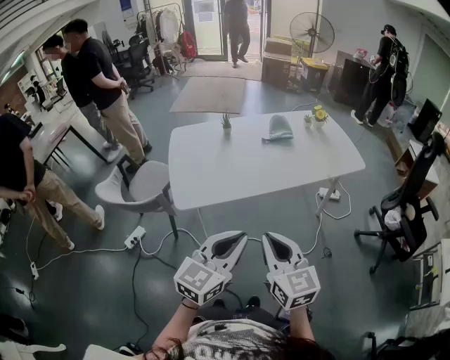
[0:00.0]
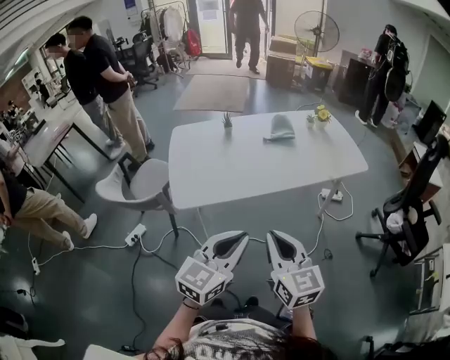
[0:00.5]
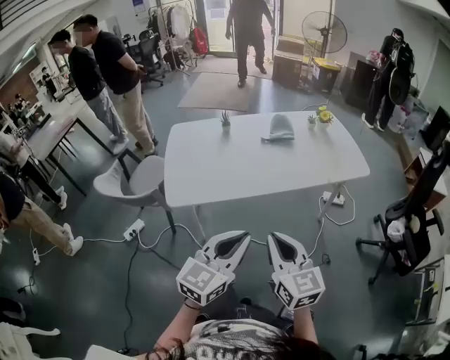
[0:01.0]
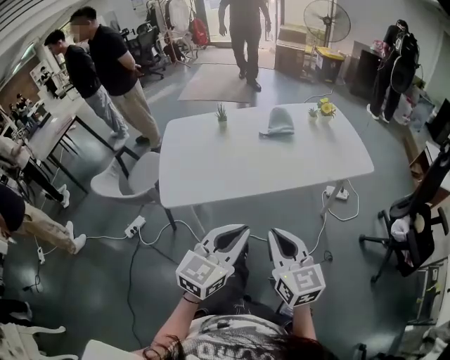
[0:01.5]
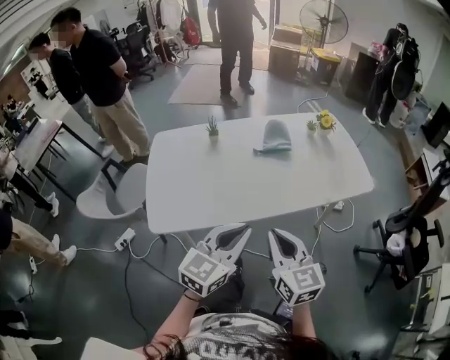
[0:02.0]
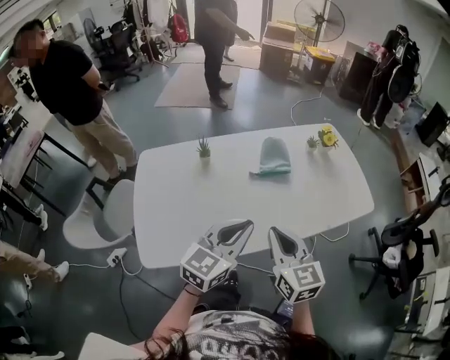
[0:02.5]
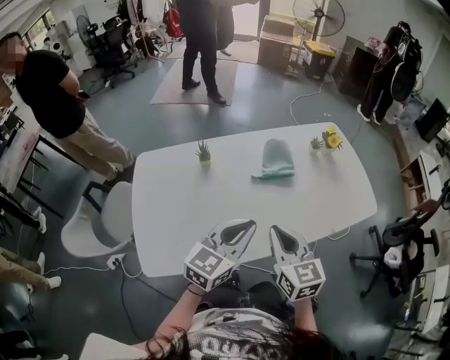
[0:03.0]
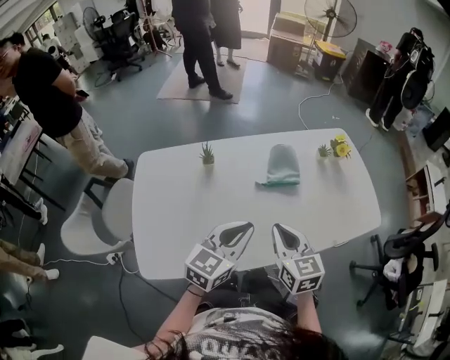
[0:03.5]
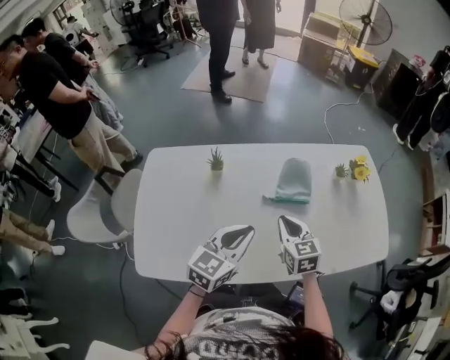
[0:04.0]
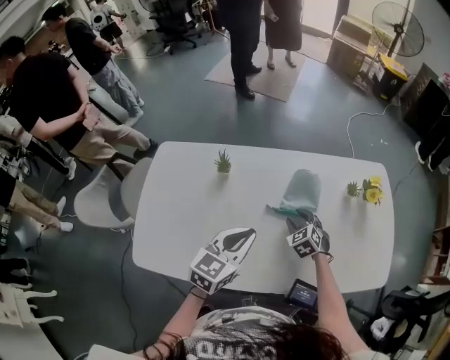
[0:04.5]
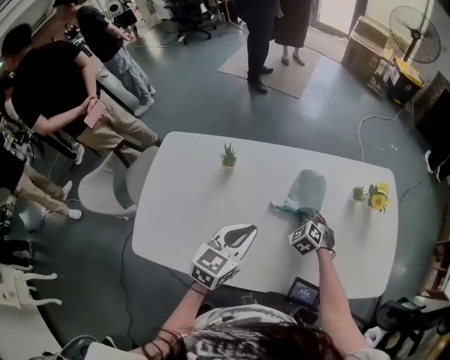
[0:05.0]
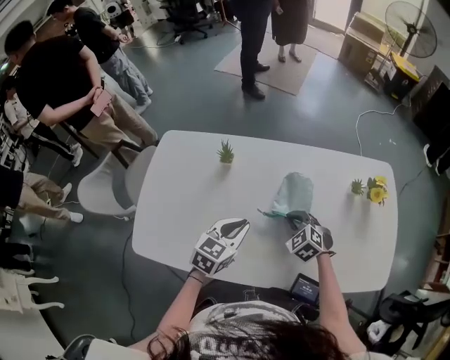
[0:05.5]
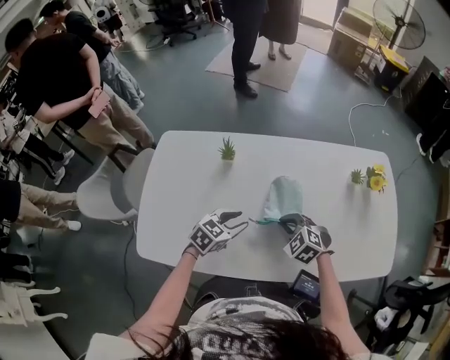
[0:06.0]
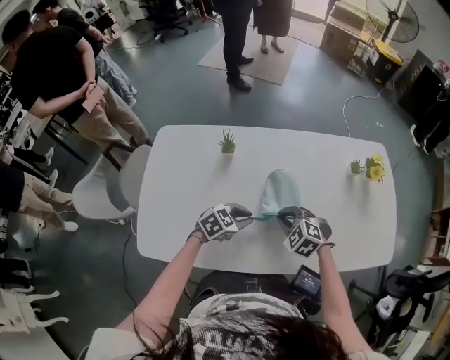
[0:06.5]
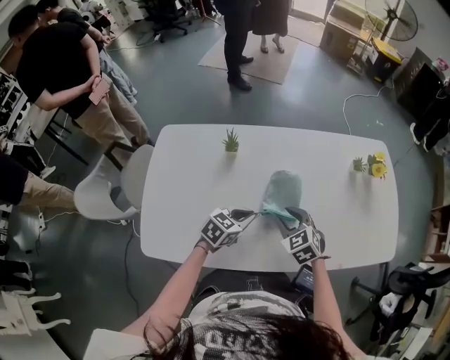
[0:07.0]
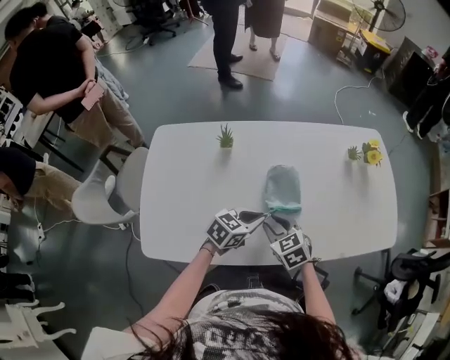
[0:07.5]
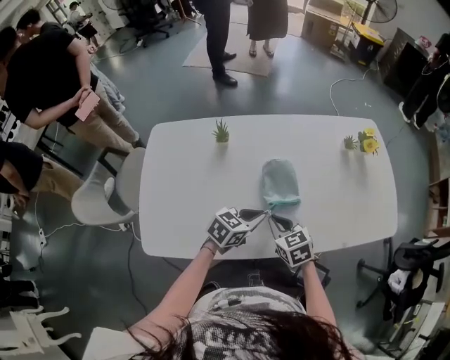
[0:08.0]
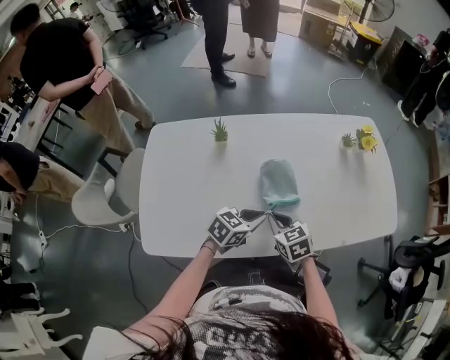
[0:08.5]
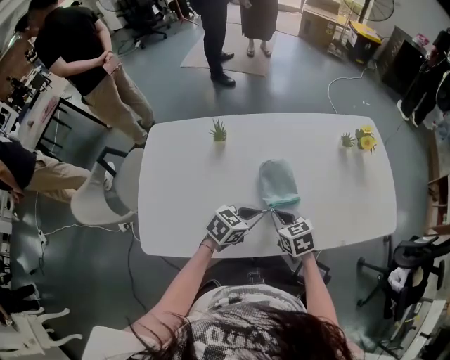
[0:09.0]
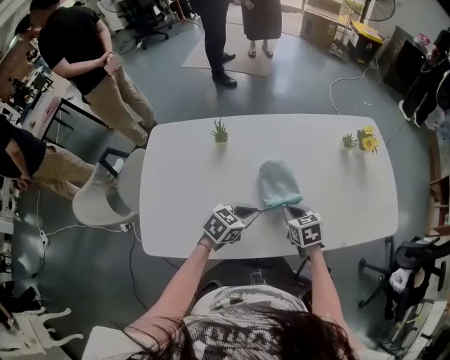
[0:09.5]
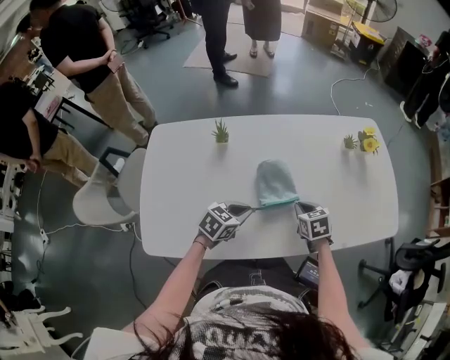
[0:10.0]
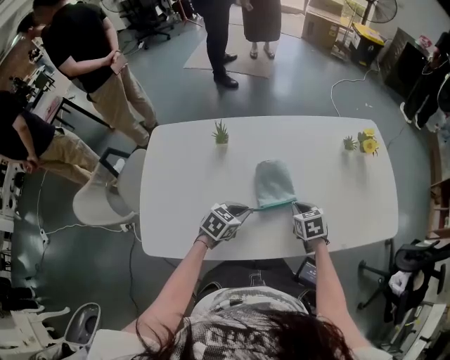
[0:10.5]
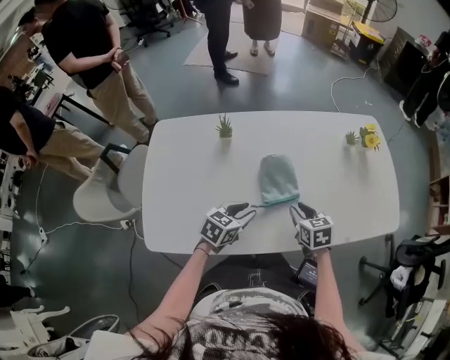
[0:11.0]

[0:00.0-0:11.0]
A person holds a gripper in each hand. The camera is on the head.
0.0 to 2.0 s: Both grippers move forward and to the right, approximately 20 cm.
2.0 to 3.5 s: The two grippers go some 25 cm forward.
3.5 to 5.5 s: The left gripper shifts about 15 cm downward and forward, and turns by about 30 degrees, while the right gripper shifts some 25 cm downward and forward, turns by approximately 60 degrees, and opens and closes again.
5.5 to 7.5 s: The right gripper shifts about 15 cm backward and to the left, turns by about 30 degrees, and opens its fingers, while the left gripper travels downward by about 5 cm, swivels some 30 degrees, and opens and closes again.
7.5 to 9.0 s: The right gripper closes up.
9.0 to 11.0 s: The right gripper is displaced to the right by some 5 cm, and opens, while the left gripper is displaced to the left by about 5 cm, and opens.

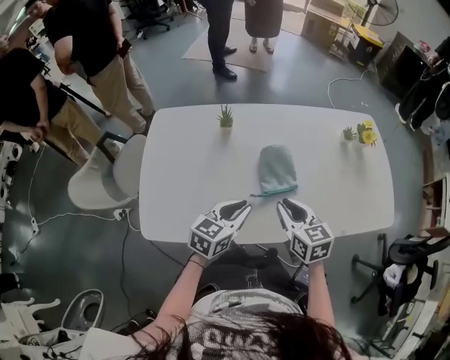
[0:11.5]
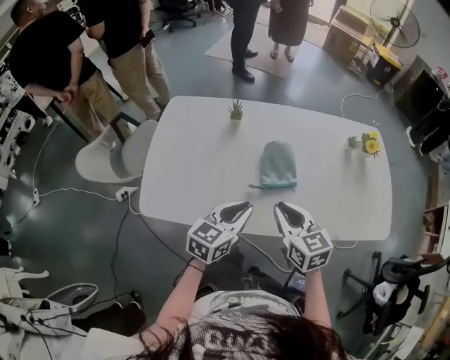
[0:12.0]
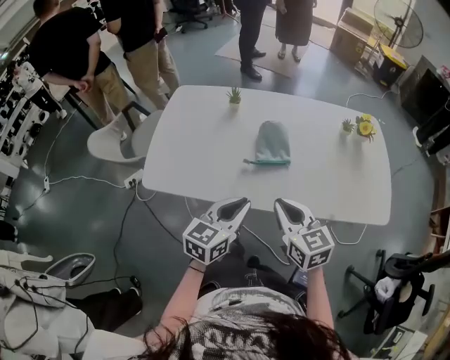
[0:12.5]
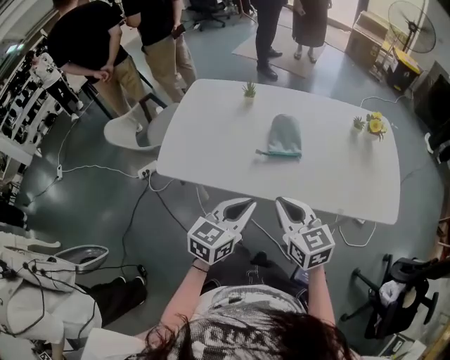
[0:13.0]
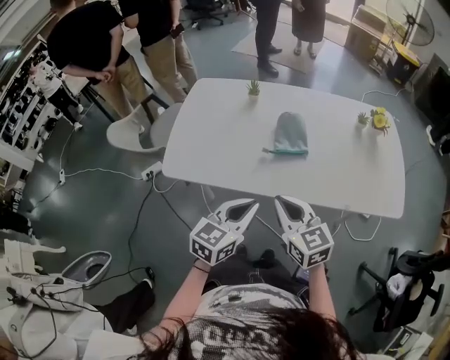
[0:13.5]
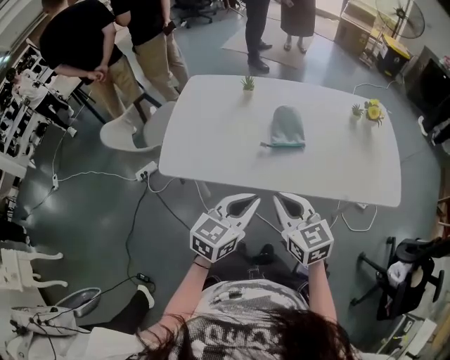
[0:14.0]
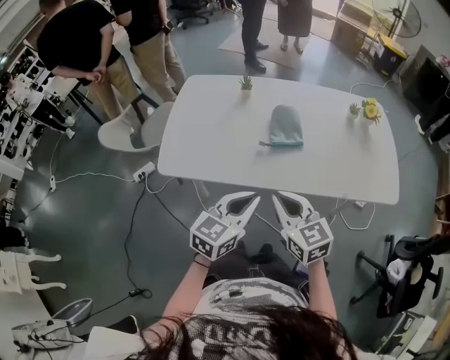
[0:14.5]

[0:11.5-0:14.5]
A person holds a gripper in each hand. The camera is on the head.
11.5 to 13.0 s: The right gripper goes approximately 15 cm backward, and turns by some 20 degrees. Meanwhile the left gripper goes roughly 20 cm backward and upward.
13.0 to 14.5 s: The right gripper shifts by some 5 cm.

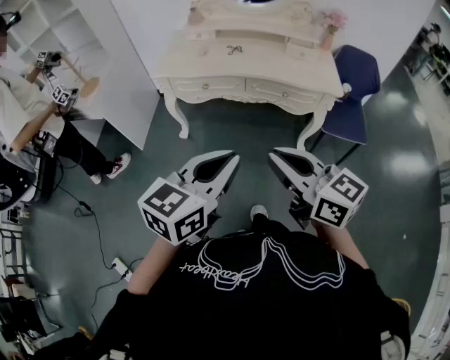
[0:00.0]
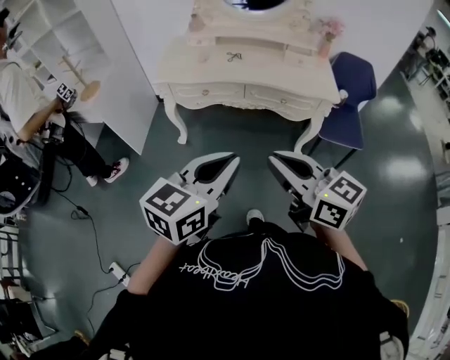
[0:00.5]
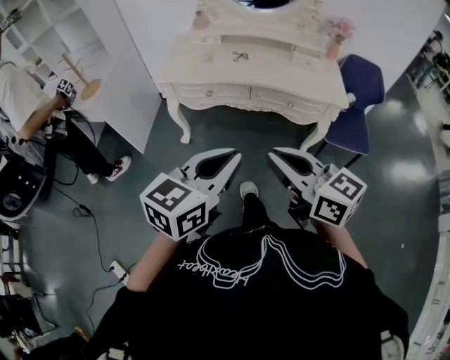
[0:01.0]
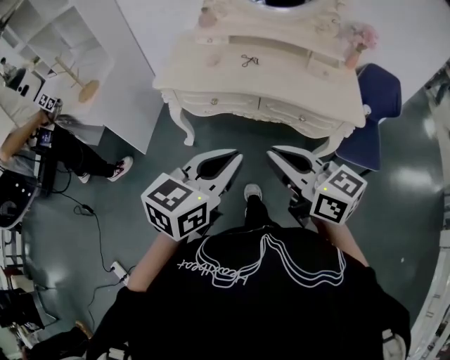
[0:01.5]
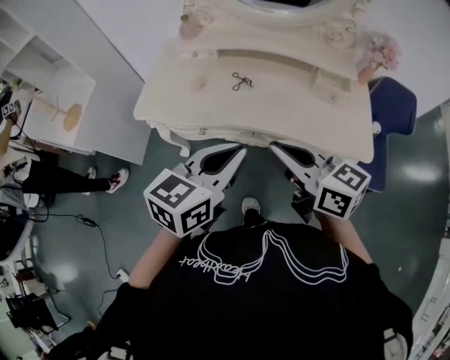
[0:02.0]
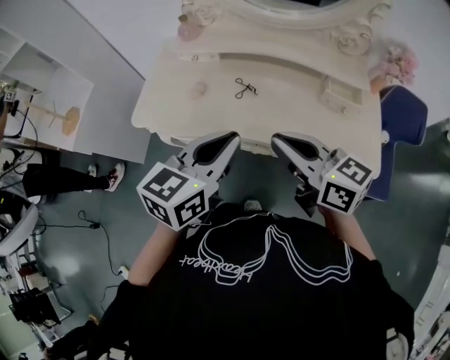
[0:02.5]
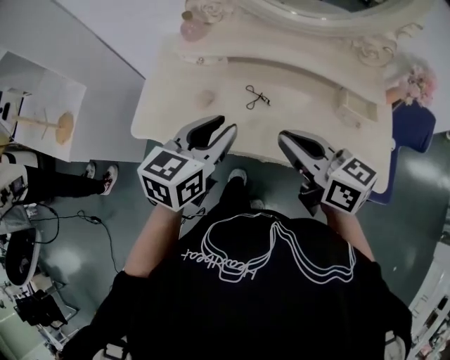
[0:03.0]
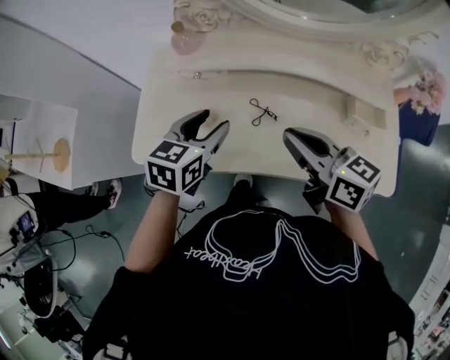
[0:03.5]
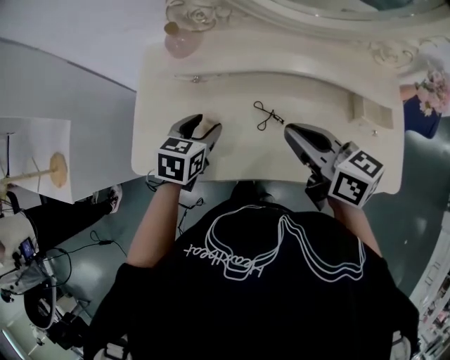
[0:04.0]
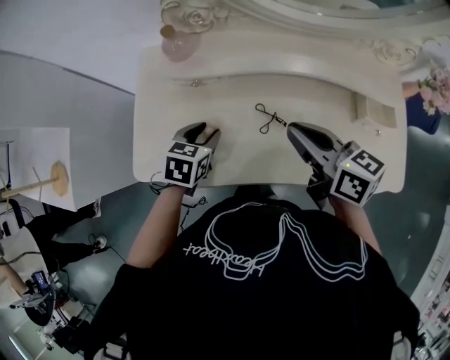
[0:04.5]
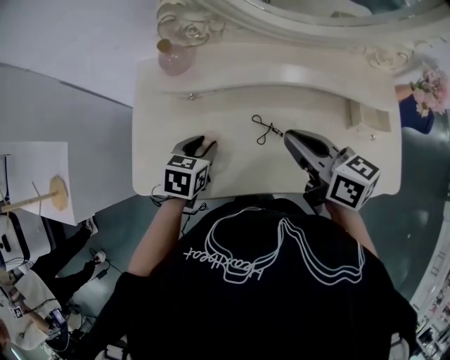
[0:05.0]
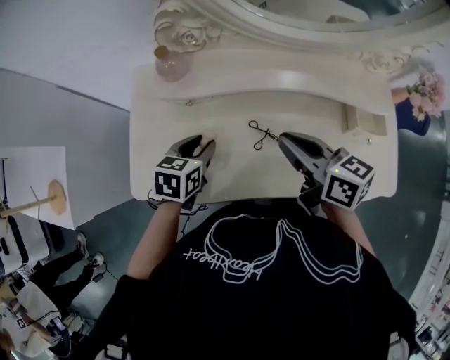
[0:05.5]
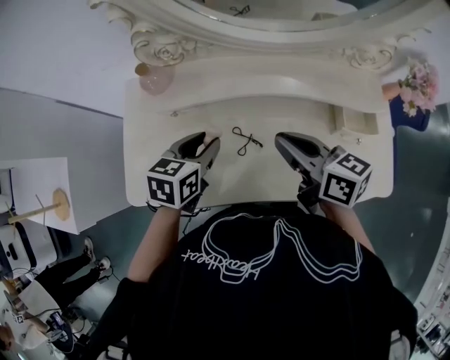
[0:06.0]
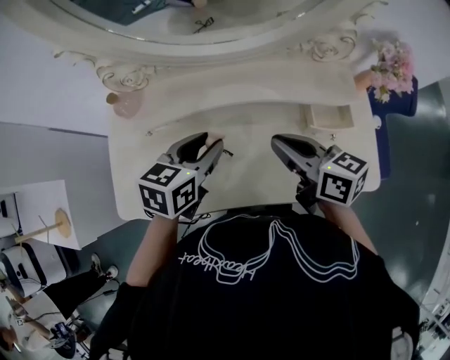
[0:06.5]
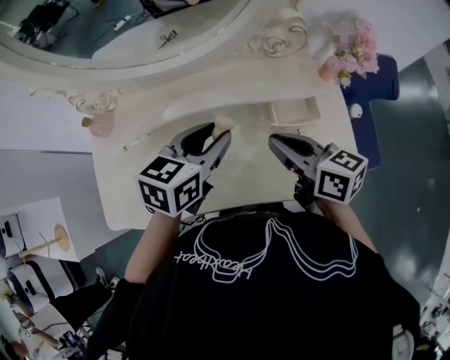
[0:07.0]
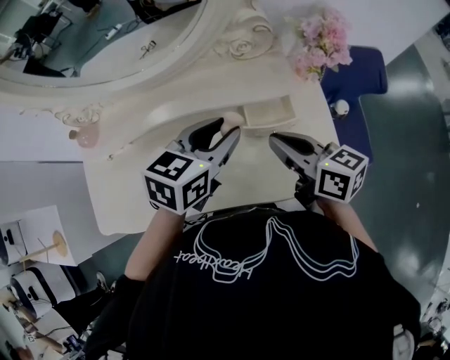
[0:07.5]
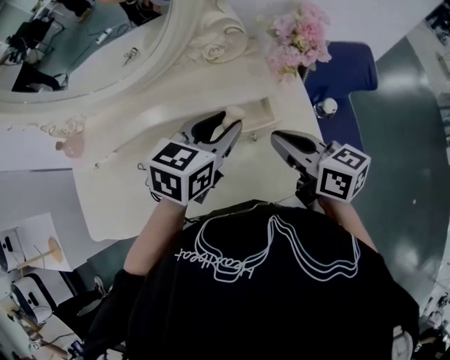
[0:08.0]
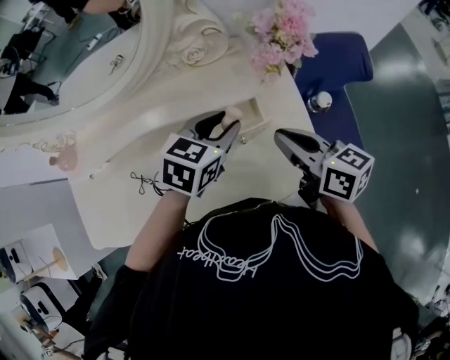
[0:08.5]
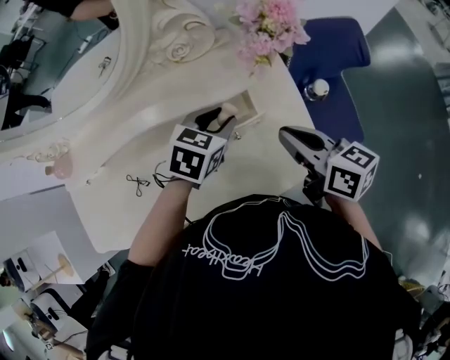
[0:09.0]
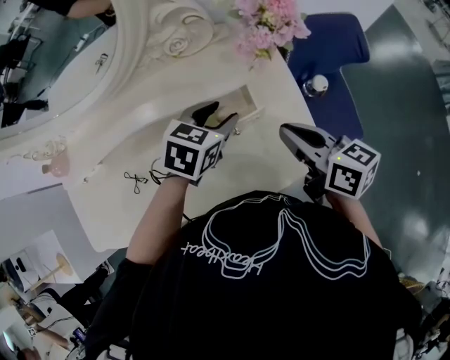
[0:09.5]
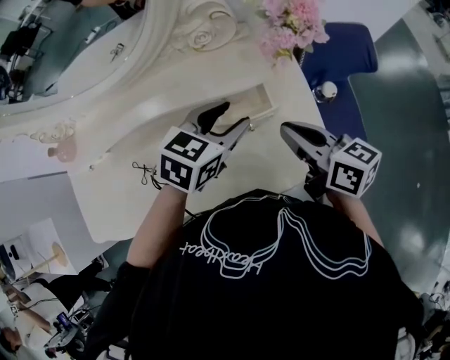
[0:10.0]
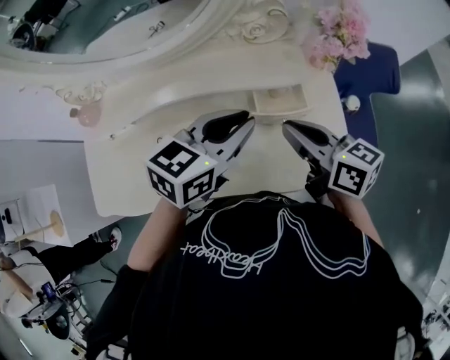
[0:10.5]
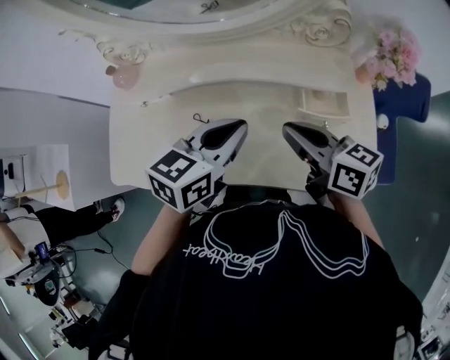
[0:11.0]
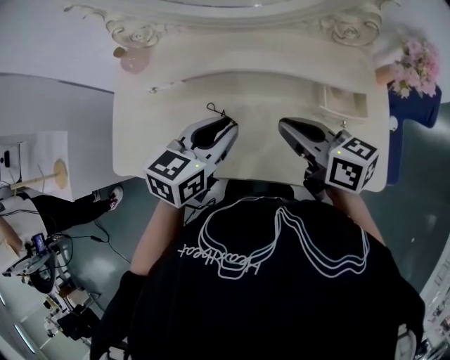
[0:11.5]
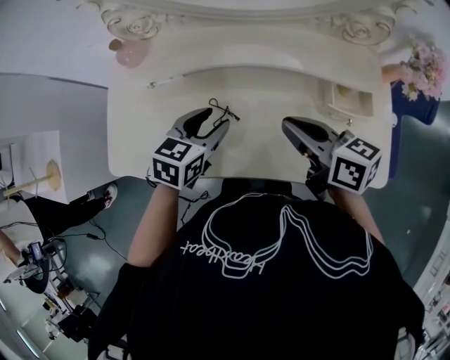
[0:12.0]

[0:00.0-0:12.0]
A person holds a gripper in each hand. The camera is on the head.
0.0 to 2.0 s: Both grippers travel together forward, about 35 cm.
2.0 to 4.0 s: The right gripper goes roughly 30 cm forward. Meanwhile the left gripper goes roughly 40 cm forward and downward, turns by approximately 30 degrees, and opens up.
4.0 to 6.0 s: The left gripper moves to the right and upward, some 10 cm; the right gripper changes place by roughly 5 cm.
6.0 to 8.0 s: Both grippers travel together to the right, approximately 35 cm. The left gripper turns by some 20 degrees.
10.0 to 12.0 s: The grippers both shift to the left by approximately 30 cm. The right gripper changes its angle by about 20 degrees. Meanwhile the left gripper turns by about 30 degrees, and closes, then reopens.

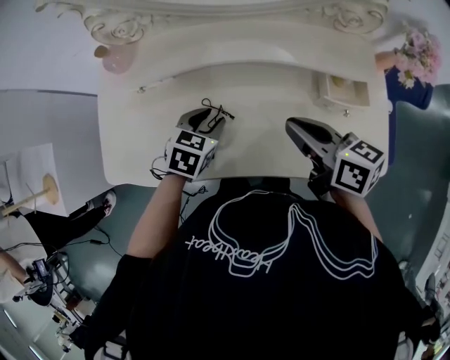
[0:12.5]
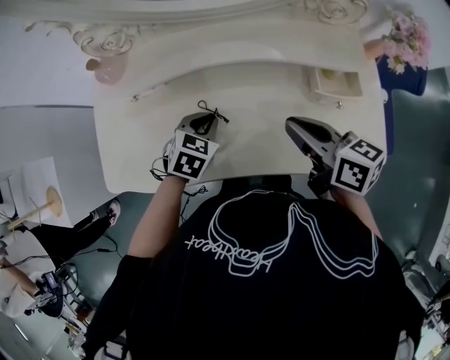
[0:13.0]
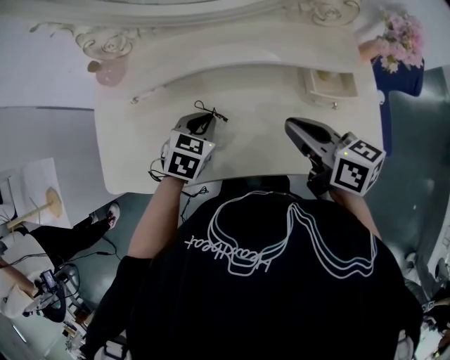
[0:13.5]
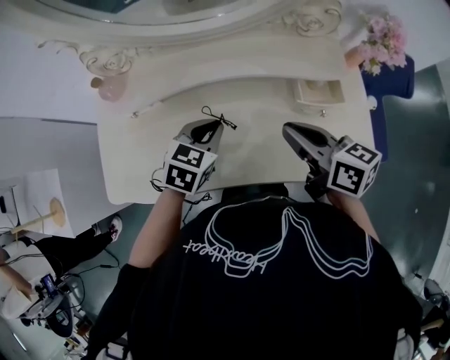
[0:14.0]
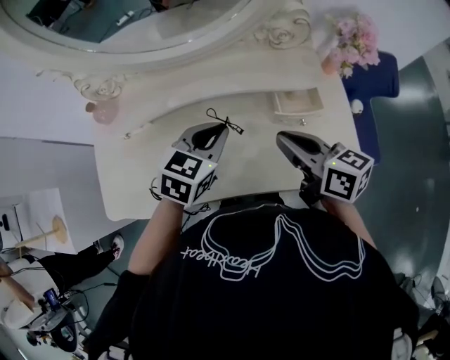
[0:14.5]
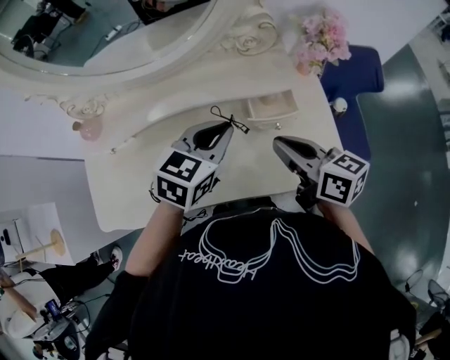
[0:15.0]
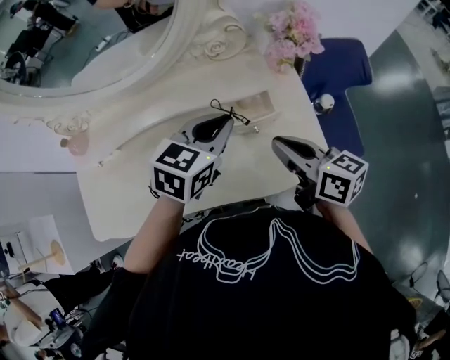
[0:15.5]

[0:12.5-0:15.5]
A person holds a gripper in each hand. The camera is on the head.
12.5 to 14.0 s: The left gripper moves upward and to the right, some 10 cm, and closes. The right gripper shifts by about 5 cm.
14.0 to 15.5 s: The left gripper heads to the right and upward, covering roughly 25 cm; the right gripper travels to the right by roughly 15 cm.
